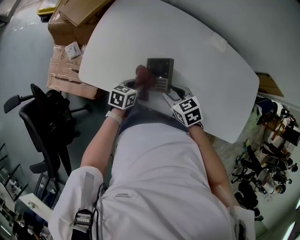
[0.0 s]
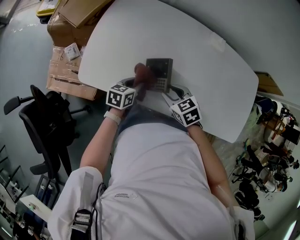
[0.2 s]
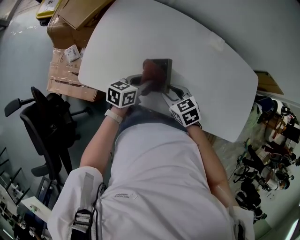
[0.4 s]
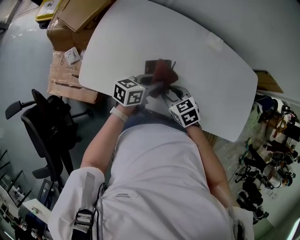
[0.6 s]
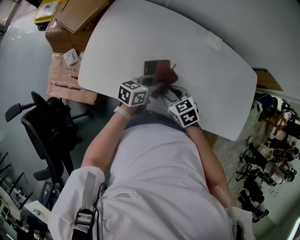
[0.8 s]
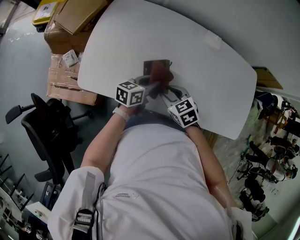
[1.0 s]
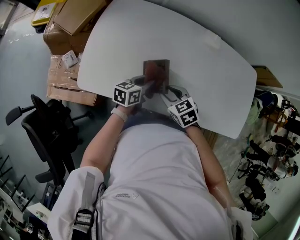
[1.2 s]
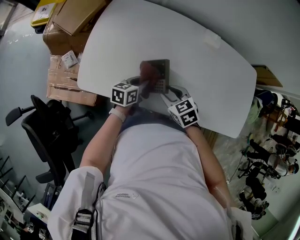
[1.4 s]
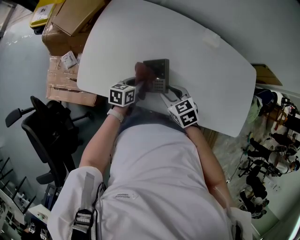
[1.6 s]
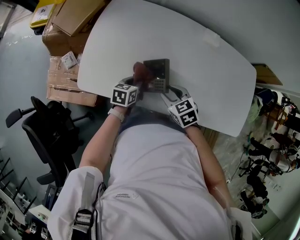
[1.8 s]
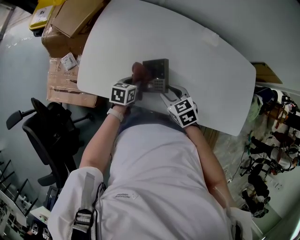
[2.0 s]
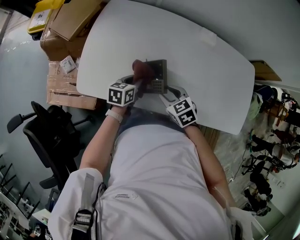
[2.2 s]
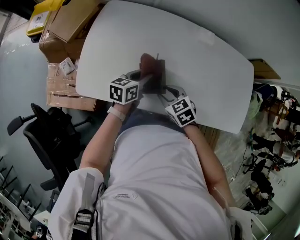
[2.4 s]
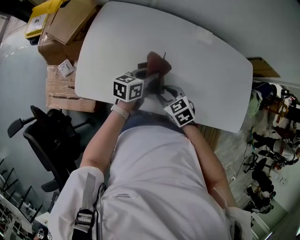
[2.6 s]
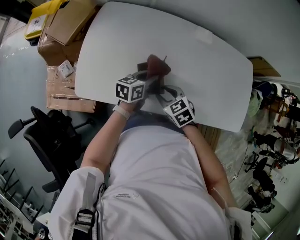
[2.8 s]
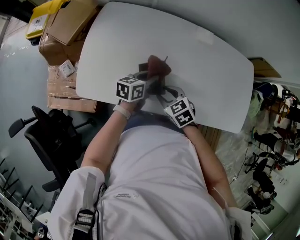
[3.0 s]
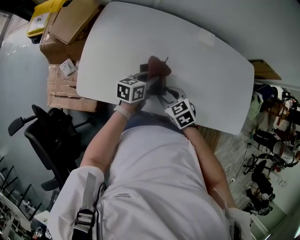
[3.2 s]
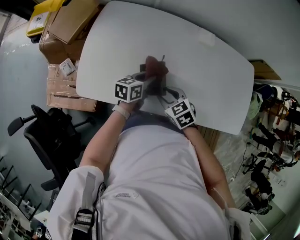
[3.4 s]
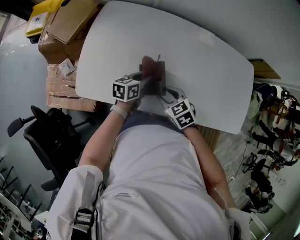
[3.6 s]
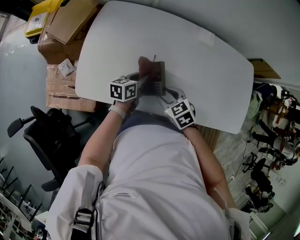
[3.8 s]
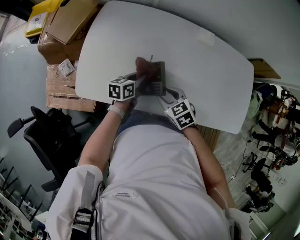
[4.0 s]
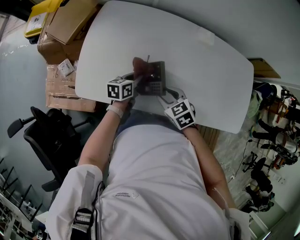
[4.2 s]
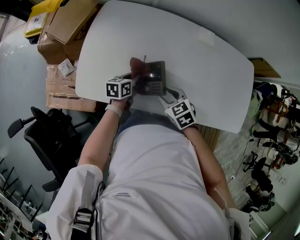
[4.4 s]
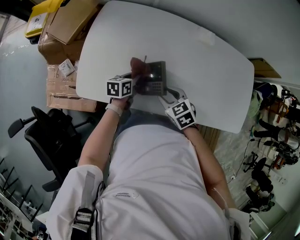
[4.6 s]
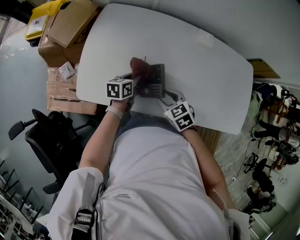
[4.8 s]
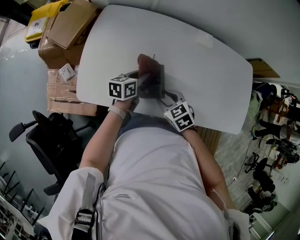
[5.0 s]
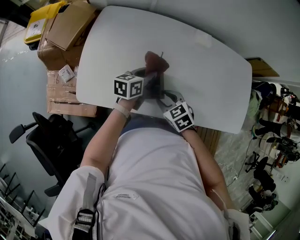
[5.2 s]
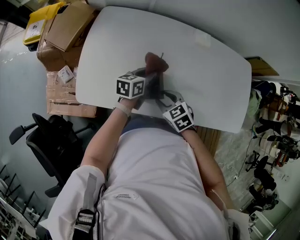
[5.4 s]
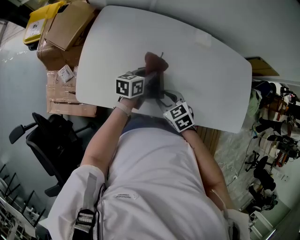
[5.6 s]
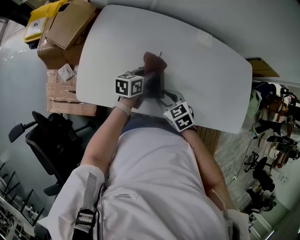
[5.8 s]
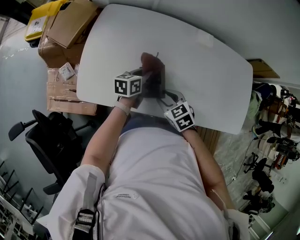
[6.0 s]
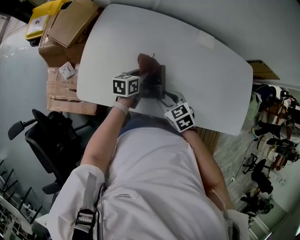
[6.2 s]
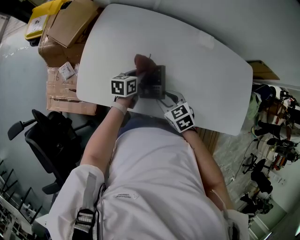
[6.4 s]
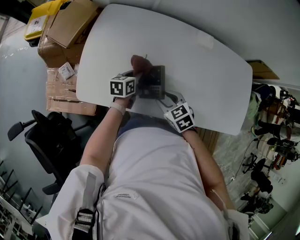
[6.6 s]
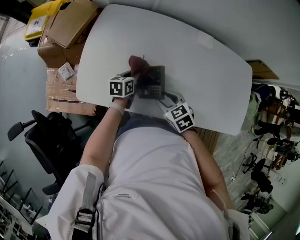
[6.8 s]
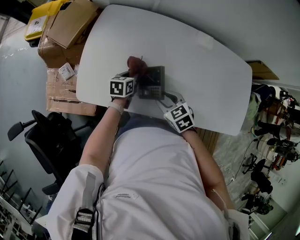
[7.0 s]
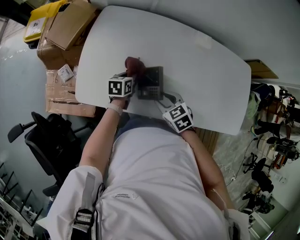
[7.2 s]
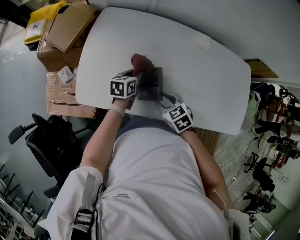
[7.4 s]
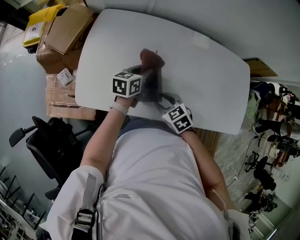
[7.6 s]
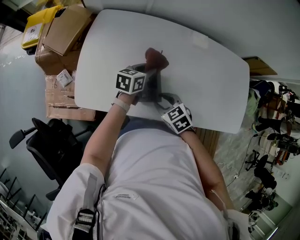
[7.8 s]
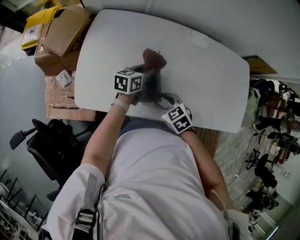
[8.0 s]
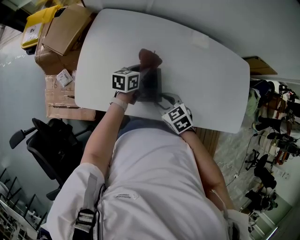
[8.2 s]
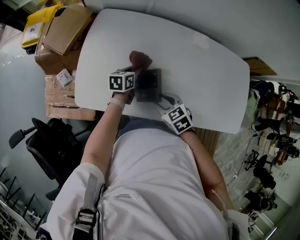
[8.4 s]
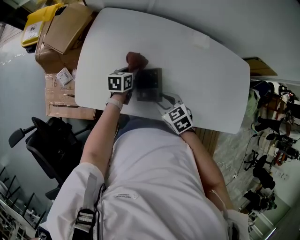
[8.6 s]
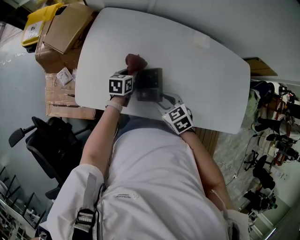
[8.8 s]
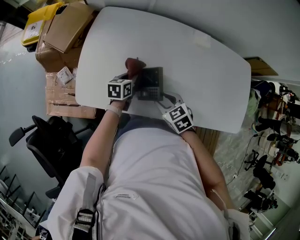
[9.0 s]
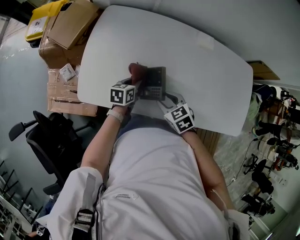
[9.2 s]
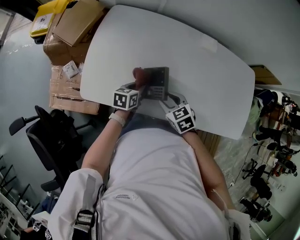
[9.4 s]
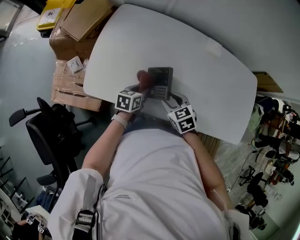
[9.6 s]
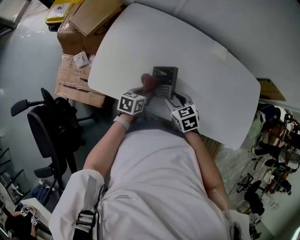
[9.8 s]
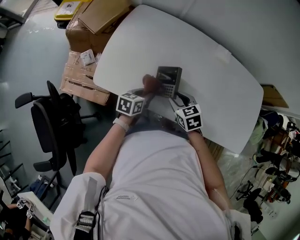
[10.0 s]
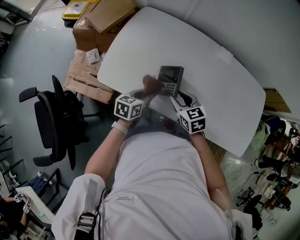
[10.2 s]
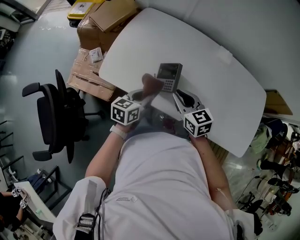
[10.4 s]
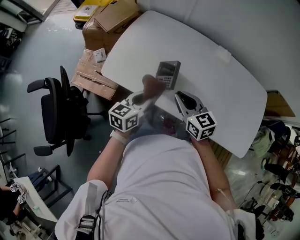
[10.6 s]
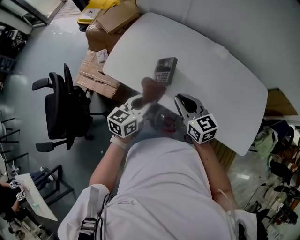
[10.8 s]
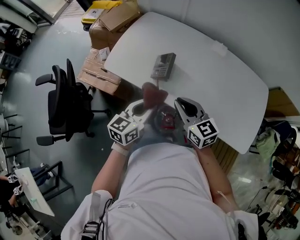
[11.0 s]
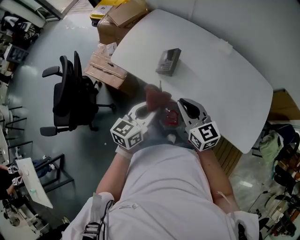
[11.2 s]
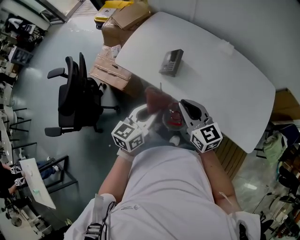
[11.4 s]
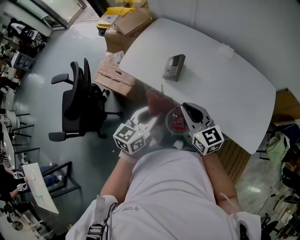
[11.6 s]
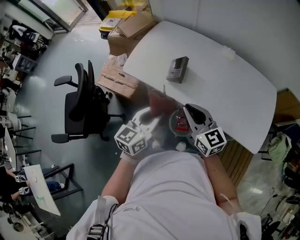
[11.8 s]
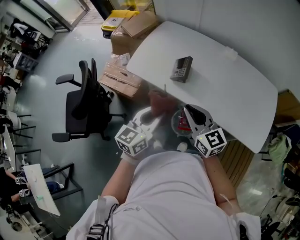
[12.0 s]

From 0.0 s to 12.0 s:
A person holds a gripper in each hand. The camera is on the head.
From 0.0 s to 1.6 s: The left gripper travels upward and back again, roughly 10 cm each way.
From 1.6 s to 3.0 s: The left gripper is displaced upward and to the right by some 10 cm.
From 3.0 s to 4.4 s: The left gripper goes some 10 cm downward and to the left.
From 4.4 s to 6.0 s: The left gripper moves upward, roughly 5 cm.
From 7.6 s to 9.0 s: The left gripper travels downward and to the left by roughly 10 cm.
From 9.0 s to 10.4 s: The right gripper shifts some 10 cm upward, and rotates roughly 30 degrees, while the left gripper is displaced backward and upward by roughly 20 cm.
From 10.4 s to 12.0 s: The two grippers go approximately 25 cm backward and upward. The left gripper swivels about 20 degrees. The right gripper swivels some 20 degrees.

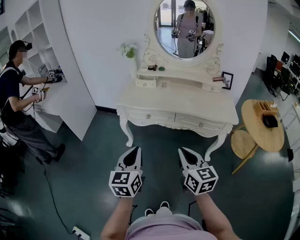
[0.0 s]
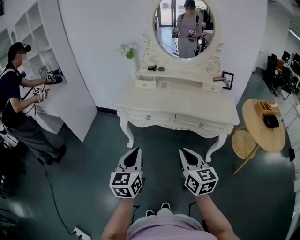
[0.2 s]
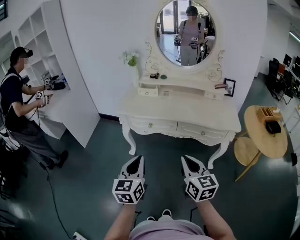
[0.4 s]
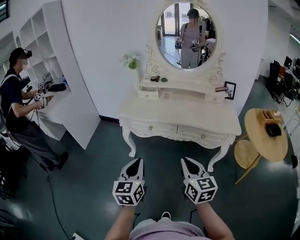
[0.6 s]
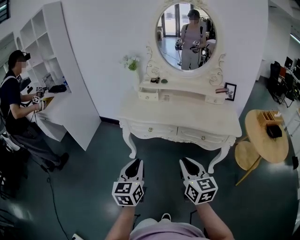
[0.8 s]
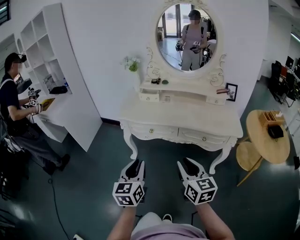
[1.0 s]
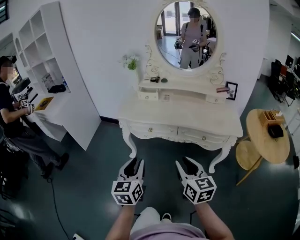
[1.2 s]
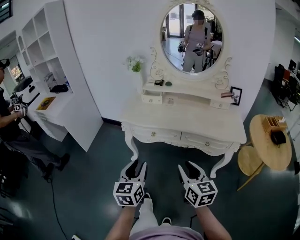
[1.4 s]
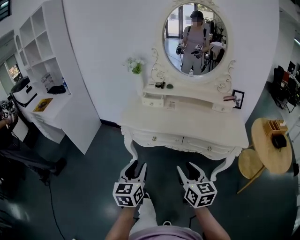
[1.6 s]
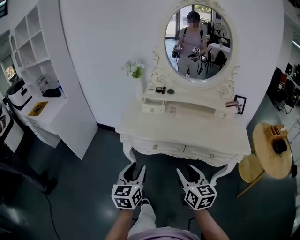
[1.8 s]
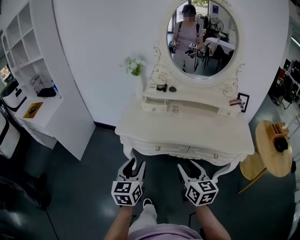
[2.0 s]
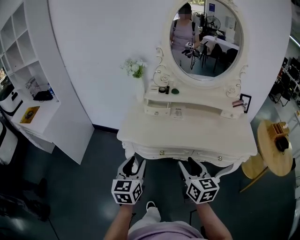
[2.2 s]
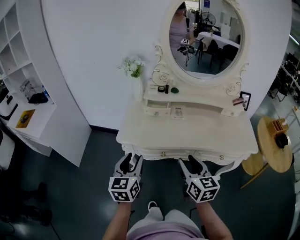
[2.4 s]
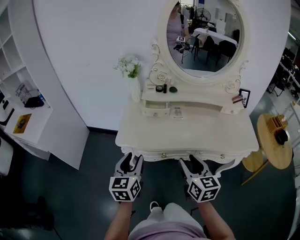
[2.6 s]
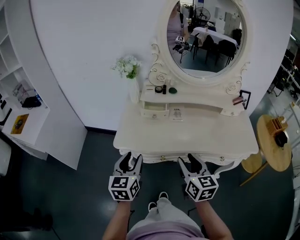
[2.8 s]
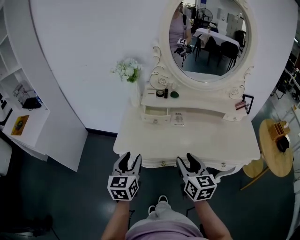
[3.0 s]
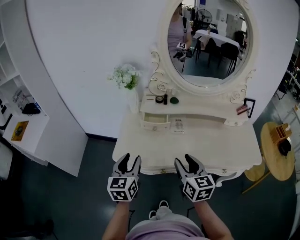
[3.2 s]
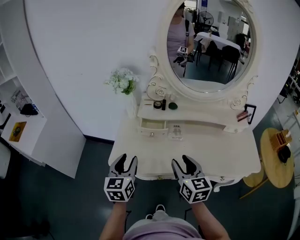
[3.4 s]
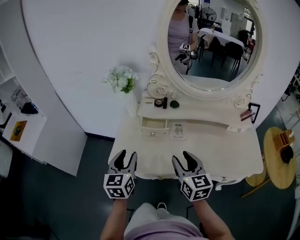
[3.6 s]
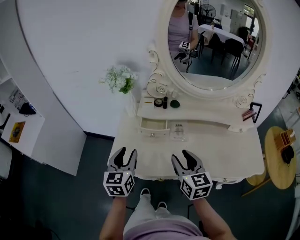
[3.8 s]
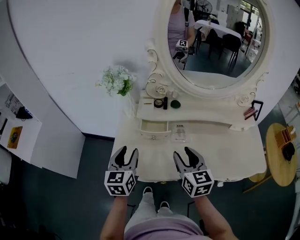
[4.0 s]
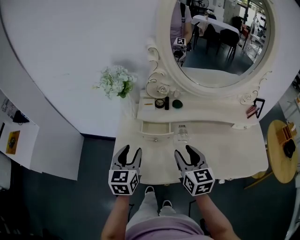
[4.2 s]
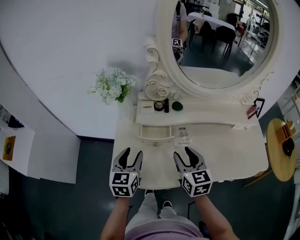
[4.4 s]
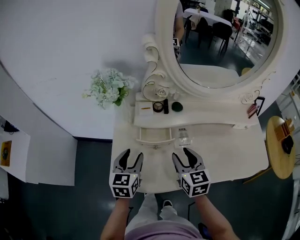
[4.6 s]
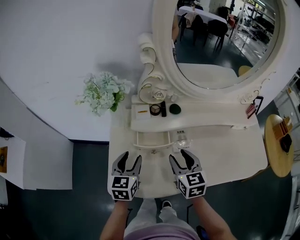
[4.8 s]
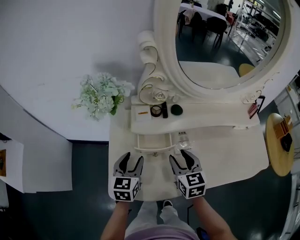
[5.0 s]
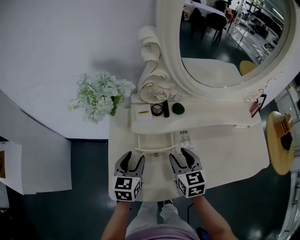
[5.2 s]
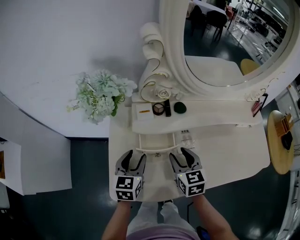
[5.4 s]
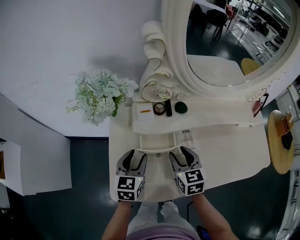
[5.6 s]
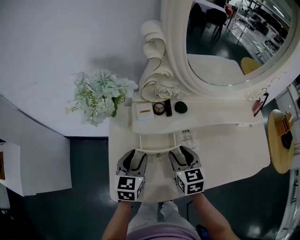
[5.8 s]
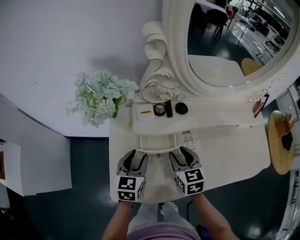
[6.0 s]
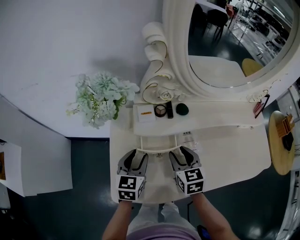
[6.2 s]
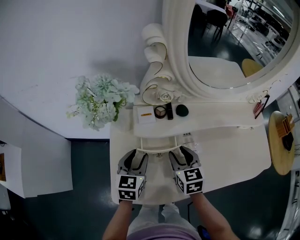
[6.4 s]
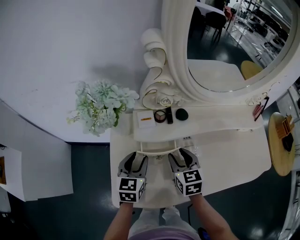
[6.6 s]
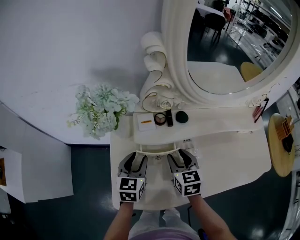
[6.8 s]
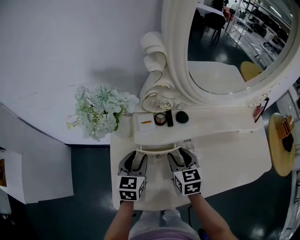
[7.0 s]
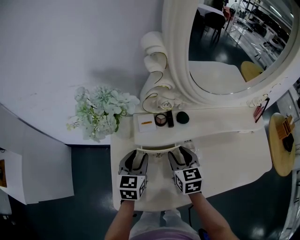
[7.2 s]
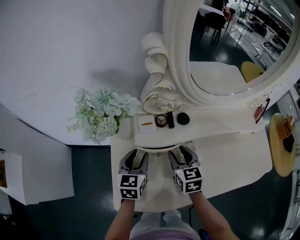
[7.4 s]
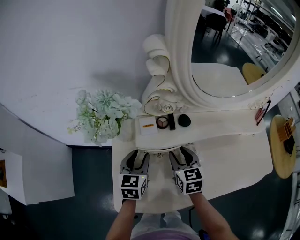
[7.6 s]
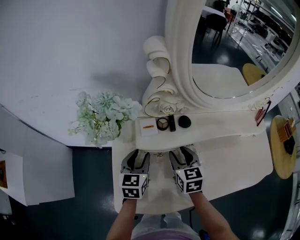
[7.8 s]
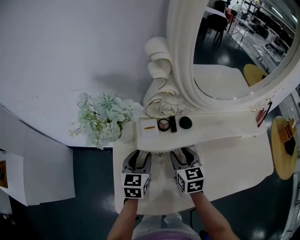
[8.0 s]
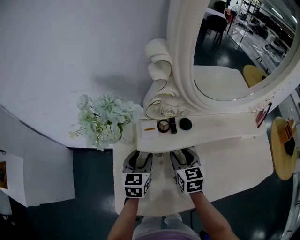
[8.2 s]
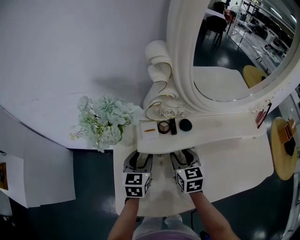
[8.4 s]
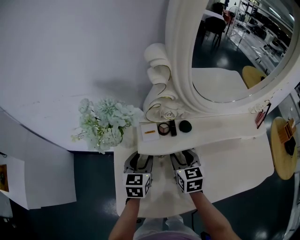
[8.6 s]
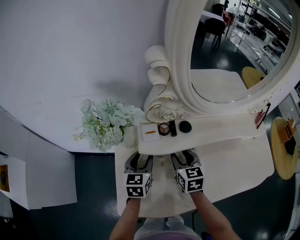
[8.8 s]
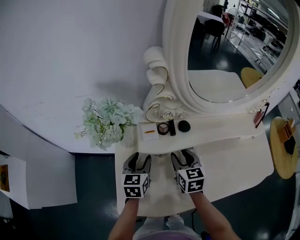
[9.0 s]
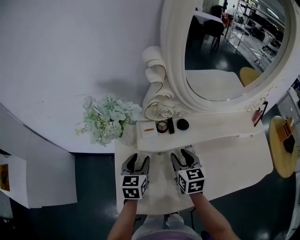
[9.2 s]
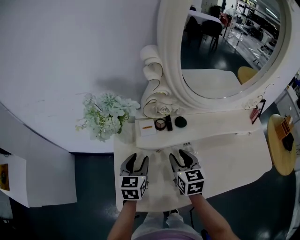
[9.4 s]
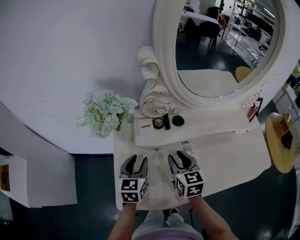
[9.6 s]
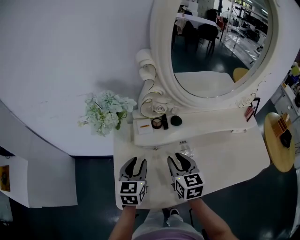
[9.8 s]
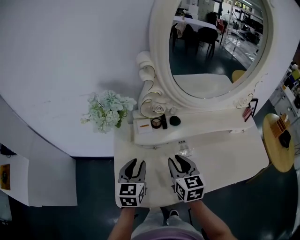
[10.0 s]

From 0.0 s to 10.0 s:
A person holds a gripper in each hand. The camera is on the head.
From 0.0 s to 1.4 s: The two grippers go some 5 cm forward. The left gripper opens up. Meanwhile the right gripper opens.
From 1.4 s to 2.8 s: The right gripper moves forward, some 25 cm; the left gripper heads forward and to the left, covering roughly 30 cm.
From 2.8 s to 4.2 s: The two grippers go approximately 20 cm forward.
From 4.2 s to 5.8 s: The left gripper moves forward and downward, about 10 cm. The right gripper shifts about 15 cm downward and forward.
From 5.8 s to 7.2 s: The grippers stay close to where they were, moving slightly.
From 7.2 s to 8.6 s: There are only small adjustments of the grippers.
From 8.6 s to 10.0 s: Both grippers travel together backward and upward, about 10 cm.

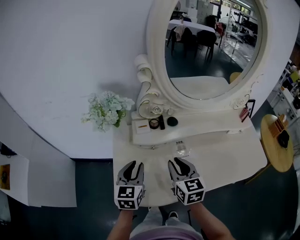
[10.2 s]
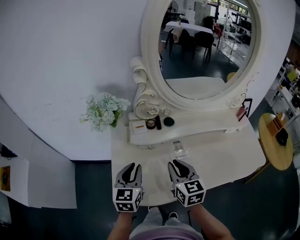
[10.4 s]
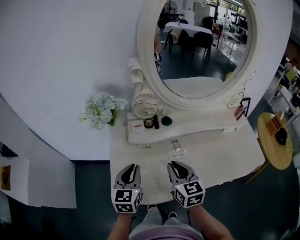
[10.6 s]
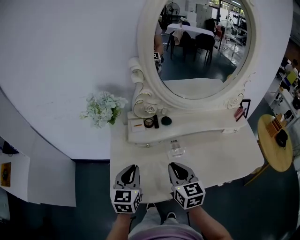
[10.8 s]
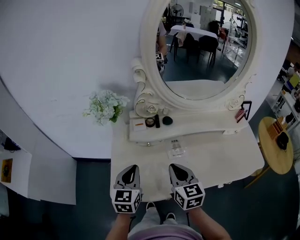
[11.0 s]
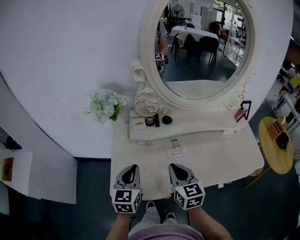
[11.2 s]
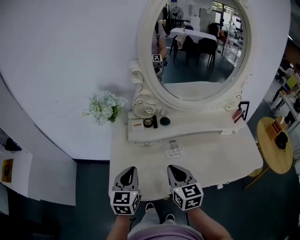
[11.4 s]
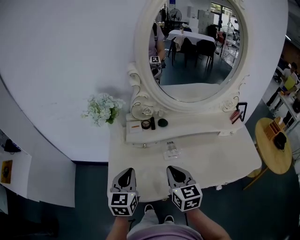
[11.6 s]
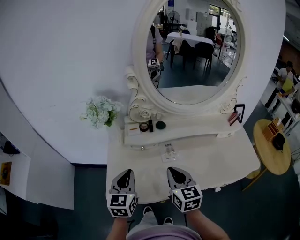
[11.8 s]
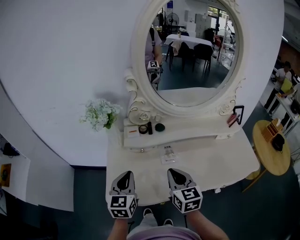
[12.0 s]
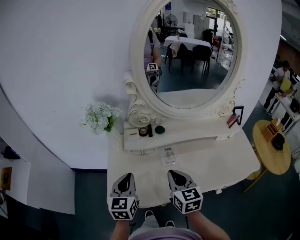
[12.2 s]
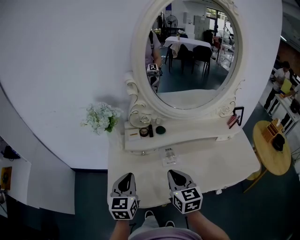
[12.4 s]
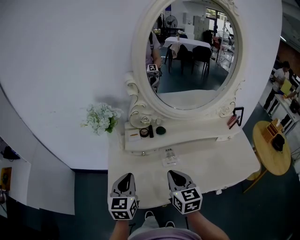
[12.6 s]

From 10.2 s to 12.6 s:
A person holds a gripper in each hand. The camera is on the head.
From 10.2 s to 11.4 s: The two grippers go approximately 5 cm backward. The right gripper closes its fingers, while the left gripper closes its fingers.
From 11.4 s to 12.6 s: There are only small adjustments of the grippers.
